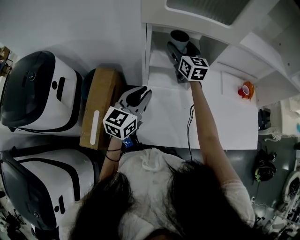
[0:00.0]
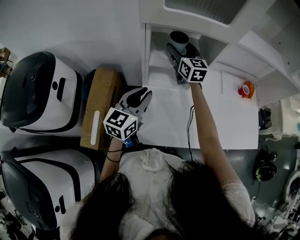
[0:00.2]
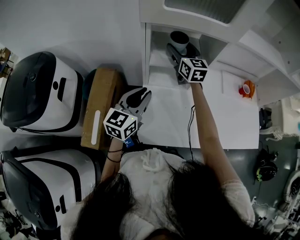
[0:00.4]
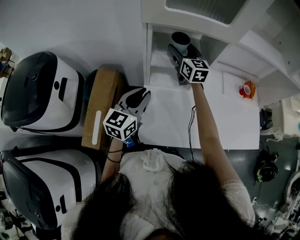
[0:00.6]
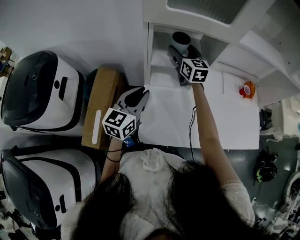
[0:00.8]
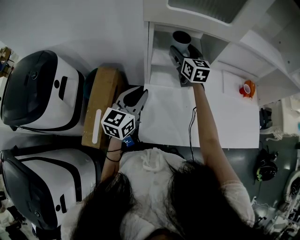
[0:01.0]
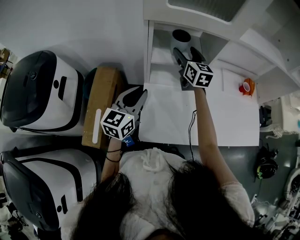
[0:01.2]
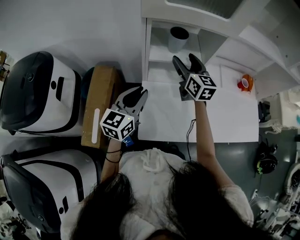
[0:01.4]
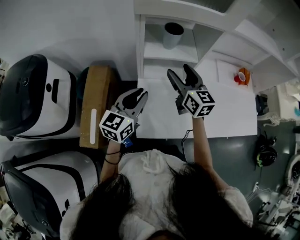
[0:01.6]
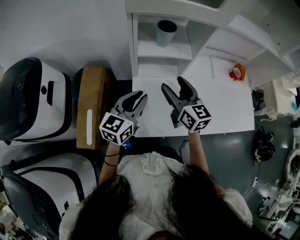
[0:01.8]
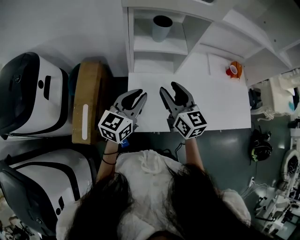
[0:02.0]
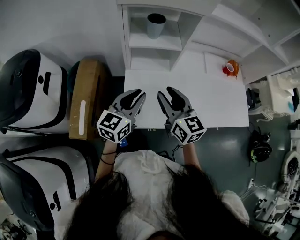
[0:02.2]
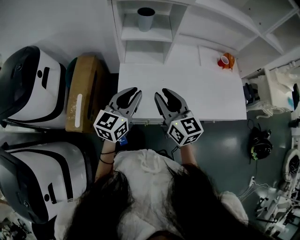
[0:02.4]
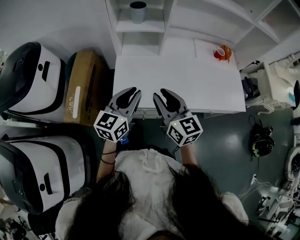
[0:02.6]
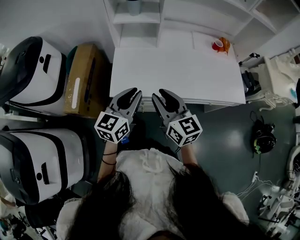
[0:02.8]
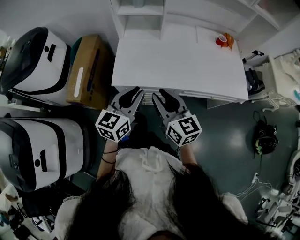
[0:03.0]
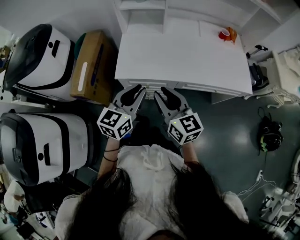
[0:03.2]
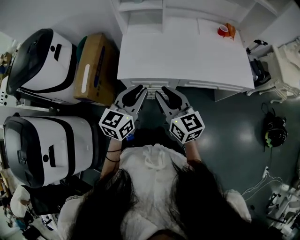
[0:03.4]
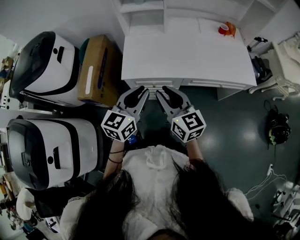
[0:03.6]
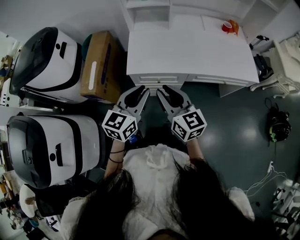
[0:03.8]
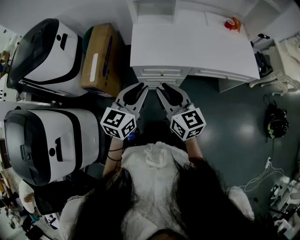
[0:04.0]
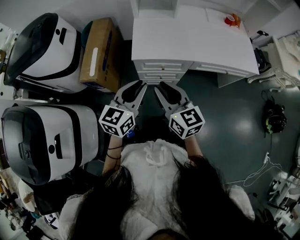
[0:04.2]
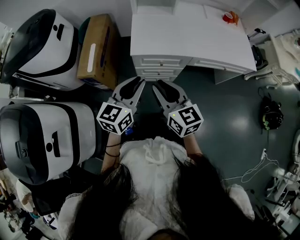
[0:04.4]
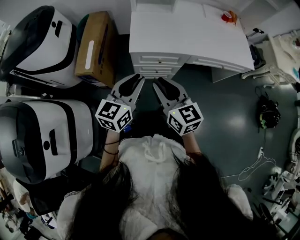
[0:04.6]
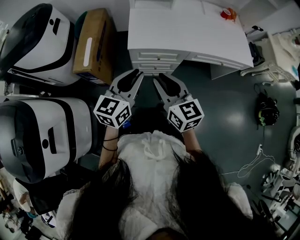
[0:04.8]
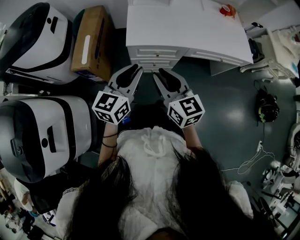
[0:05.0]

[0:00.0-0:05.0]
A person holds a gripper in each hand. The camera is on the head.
0.0 to 1.6 s: The right gripper shifts about 15 cm backward.
1.6 to 3.4 s: The left gripper moves backward and to the right, approximately 35 cm, while the right gripper is displaced backward by some 40 cm, and closes its fingers.
3.4 to 5.0 s: The grippers both shift to the left and backward by approximately 15 cm.

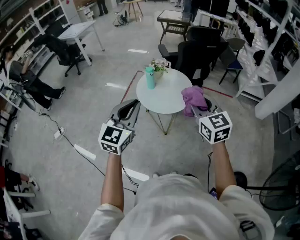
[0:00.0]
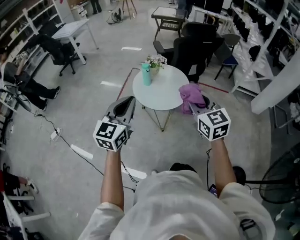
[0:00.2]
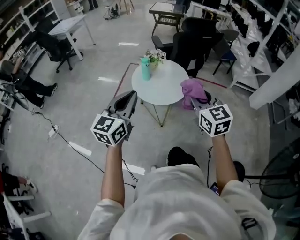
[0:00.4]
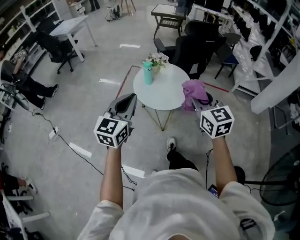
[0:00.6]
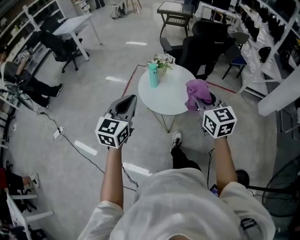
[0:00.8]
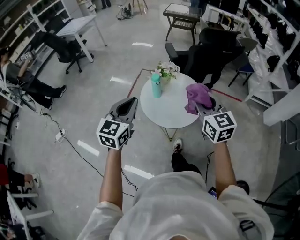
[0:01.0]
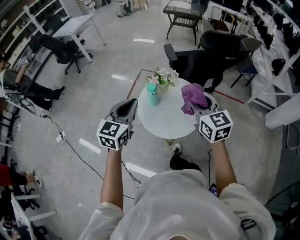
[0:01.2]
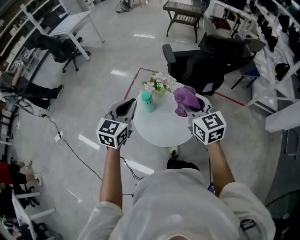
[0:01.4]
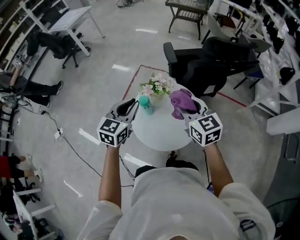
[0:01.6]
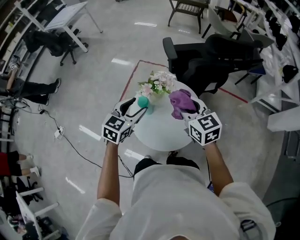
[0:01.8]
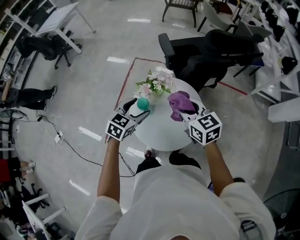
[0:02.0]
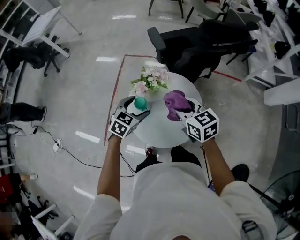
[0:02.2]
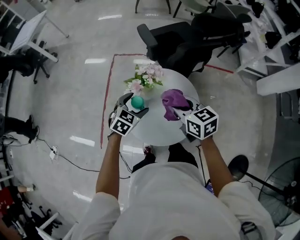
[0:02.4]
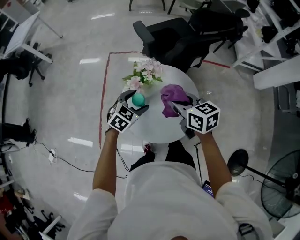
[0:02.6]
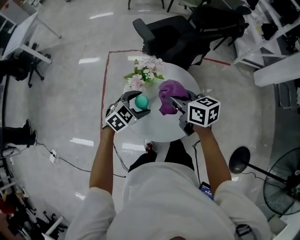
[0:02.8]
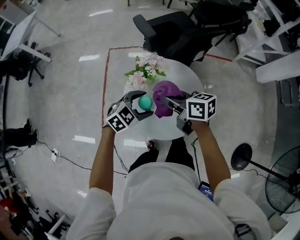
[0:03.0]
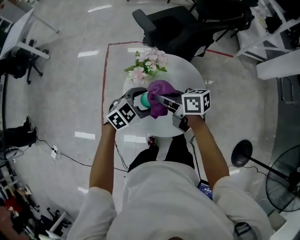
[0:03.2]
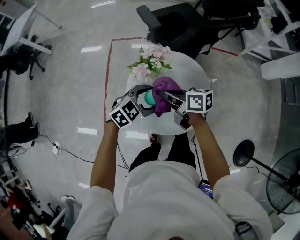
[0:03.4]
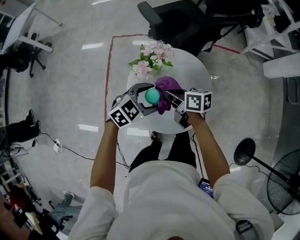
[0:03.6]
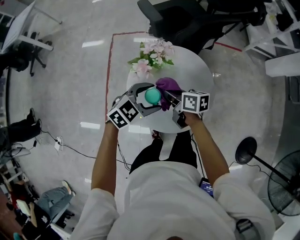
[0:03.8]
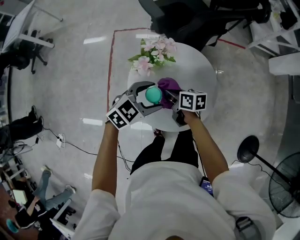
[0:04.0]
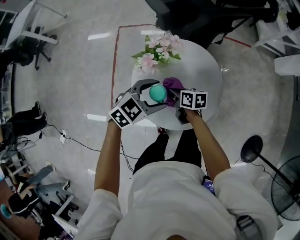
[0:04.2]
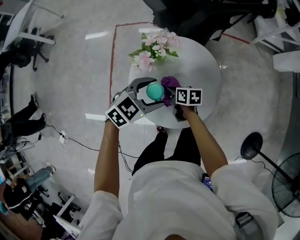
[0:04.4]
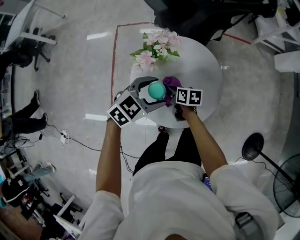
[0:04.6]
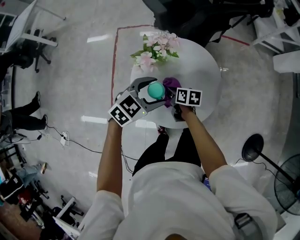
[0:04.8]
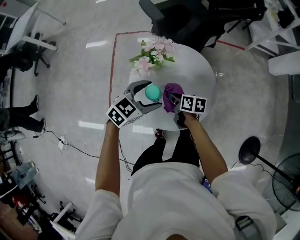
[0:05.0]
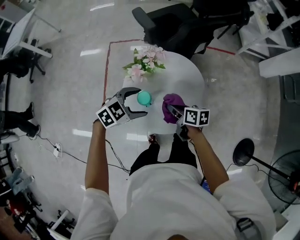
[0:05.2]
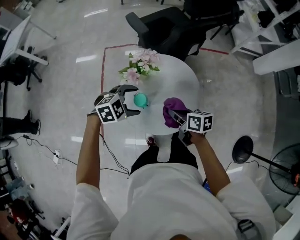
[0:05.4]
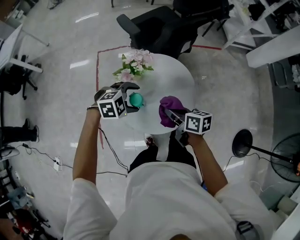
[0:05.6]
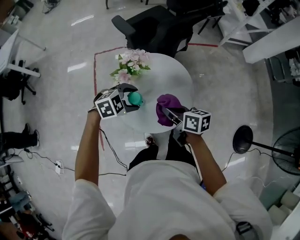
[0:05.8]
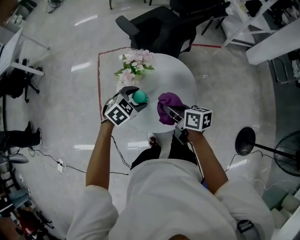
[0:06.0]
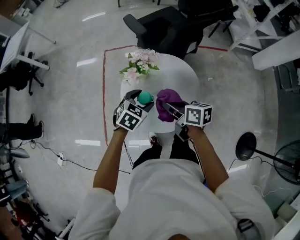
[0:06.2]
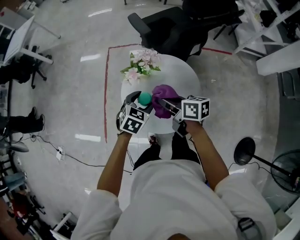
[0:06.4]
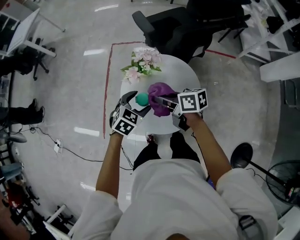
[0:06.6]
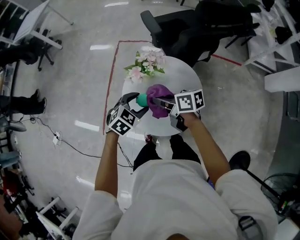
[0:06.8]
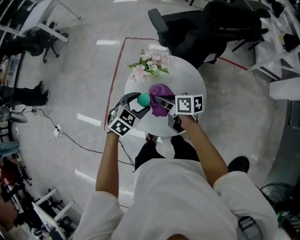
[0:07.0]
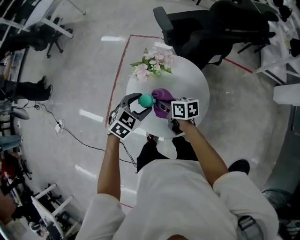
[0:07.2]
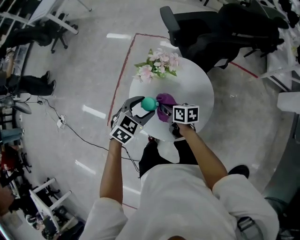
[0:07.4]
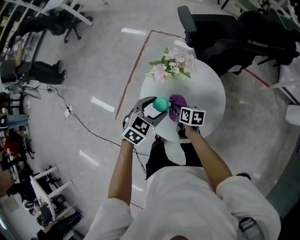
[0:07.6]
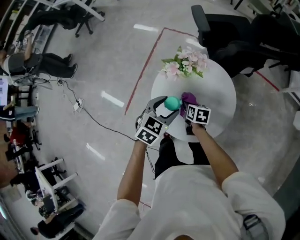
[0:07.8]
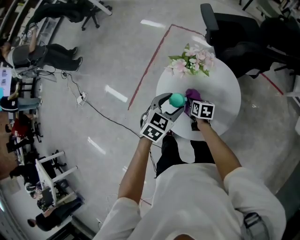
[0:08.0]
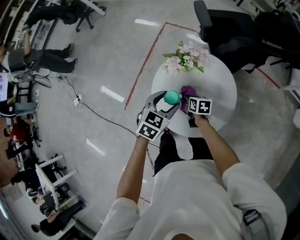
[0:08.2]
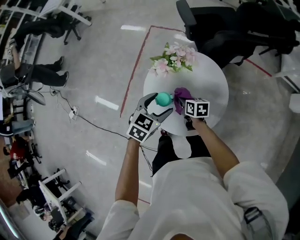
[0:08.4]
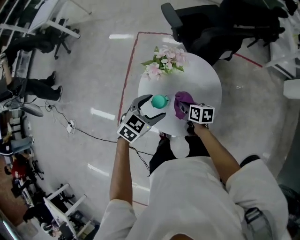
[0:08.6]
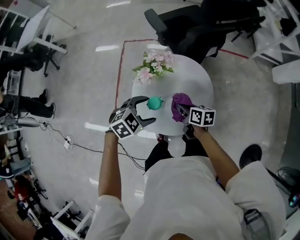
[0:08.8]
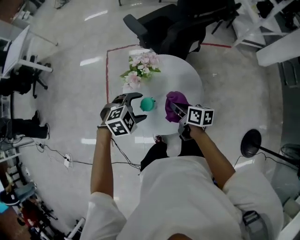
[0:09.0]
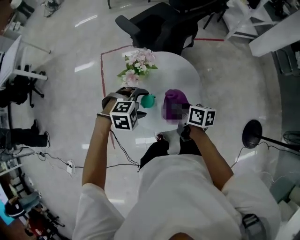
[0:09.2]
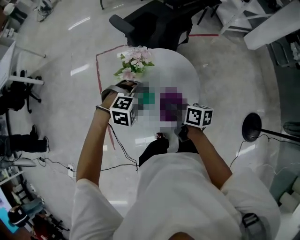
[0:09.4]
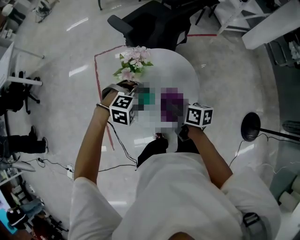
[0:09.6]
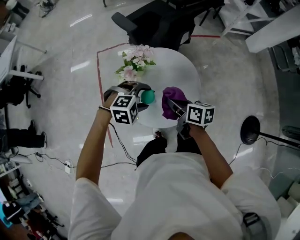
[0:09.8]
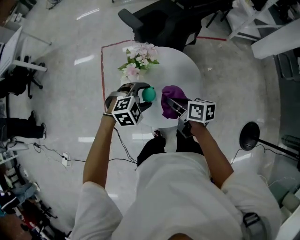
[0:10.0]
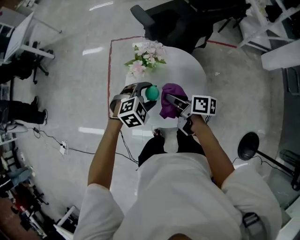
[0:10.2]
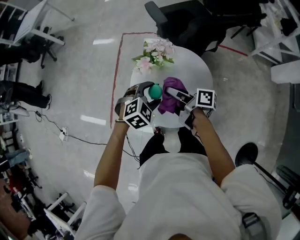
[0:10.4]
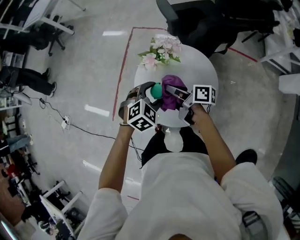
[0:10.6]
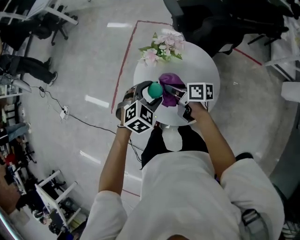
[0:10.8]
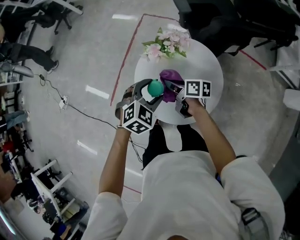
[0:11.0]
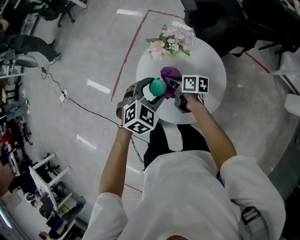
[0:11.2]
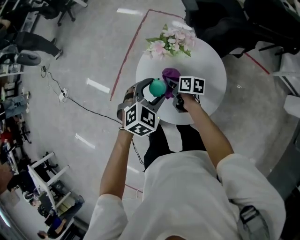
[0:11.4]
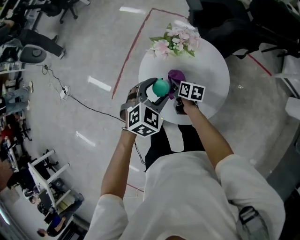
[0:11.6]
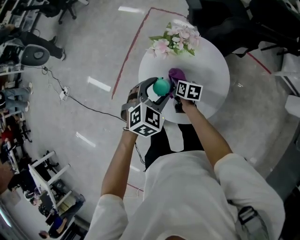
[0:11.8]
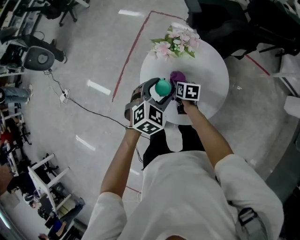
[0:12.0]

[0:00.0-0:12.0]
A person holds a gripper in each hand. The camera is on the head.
0.0 to 1.6 s: Both grippers move forward, roughly 40 cm.
1.6 to 3.0 s: Both grippers travel together downward, approximately 15 cm. The left gripper turns by some 60 degrees, and opens its fingers, while the right gripper twists about 40 degrees clockwise, seen from behind.
3.0 to 4.4 s: The right gripper is displaced downward by roughly 25 cm, and rotates some 30 degrees.
4.4 to 6.0 s: The right gripper is displaced upward by some 20 cm.
6.0 to 7.6 s: The right gripper heads downward, covering about 15 cm, and changes its angle by roughly 20 degrees. Meanwhile the left gripper changes its angle by about 40 degrees.
7.6 to 9.0 s: The right gripper travels upward by roughly 10 cm, and swivels approximately 30 degrees. Meanwhile the left gripper rotates around the line of its fingers by approximately 50 degrees, clockwise from behind.
9.0 to 10.4 s: The right gripper ends up about 5 cm from where it was, and rotates about 30 degrees, while the left gripper changes its angle by some 20 degrees.
10.4 to 12.0 s: The left gripper rotates approximately 30 degrees. Meanwhile the right gripper goes approximately 20 cm downward, and points its fingers about 40 degrees further downward.

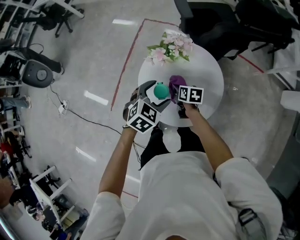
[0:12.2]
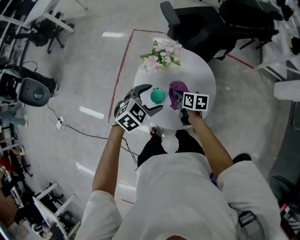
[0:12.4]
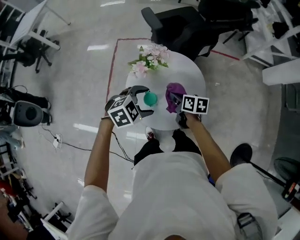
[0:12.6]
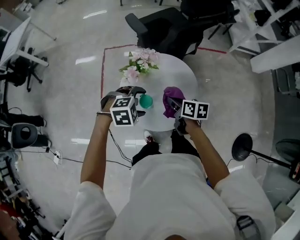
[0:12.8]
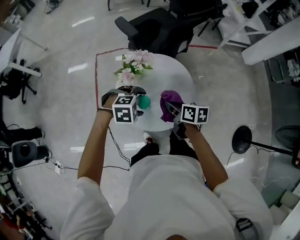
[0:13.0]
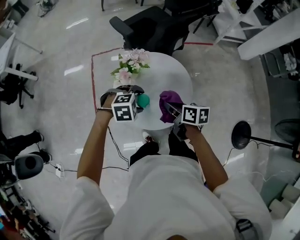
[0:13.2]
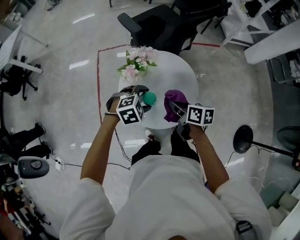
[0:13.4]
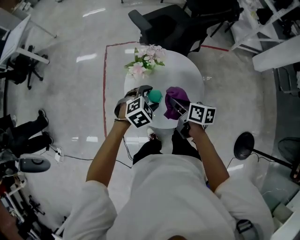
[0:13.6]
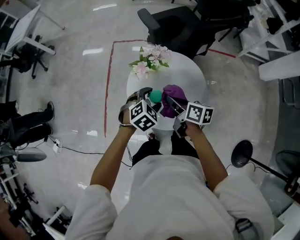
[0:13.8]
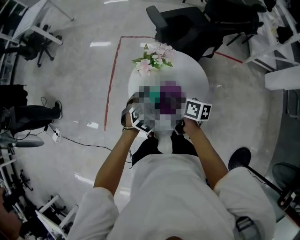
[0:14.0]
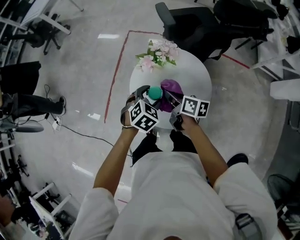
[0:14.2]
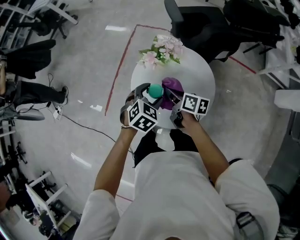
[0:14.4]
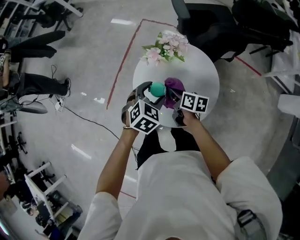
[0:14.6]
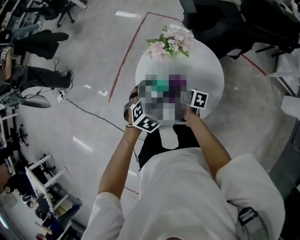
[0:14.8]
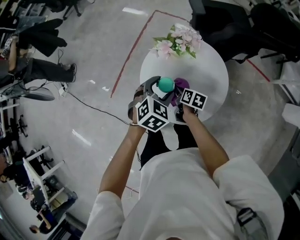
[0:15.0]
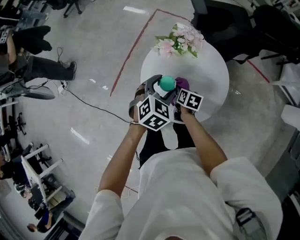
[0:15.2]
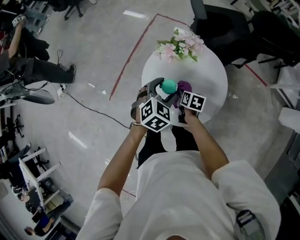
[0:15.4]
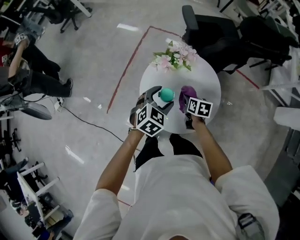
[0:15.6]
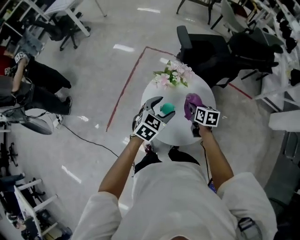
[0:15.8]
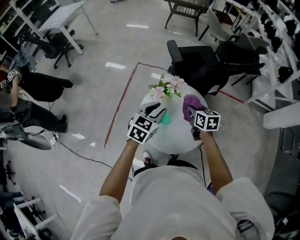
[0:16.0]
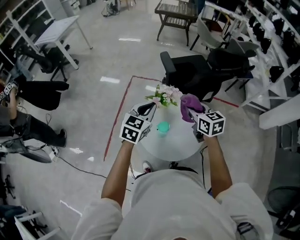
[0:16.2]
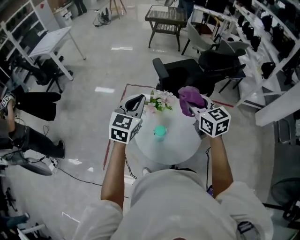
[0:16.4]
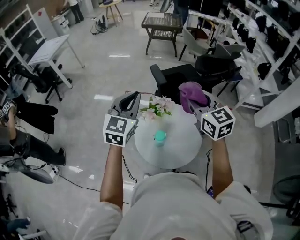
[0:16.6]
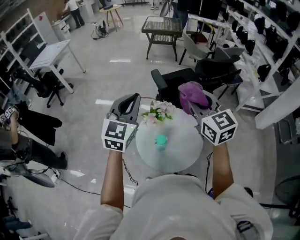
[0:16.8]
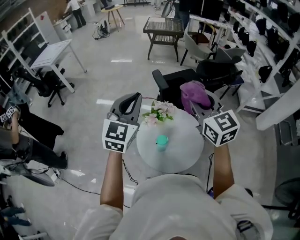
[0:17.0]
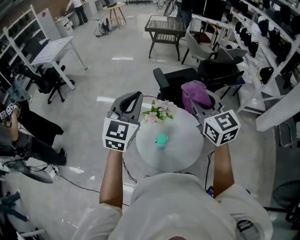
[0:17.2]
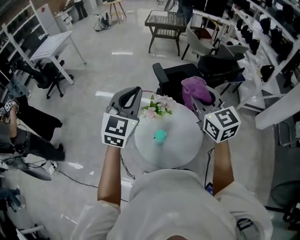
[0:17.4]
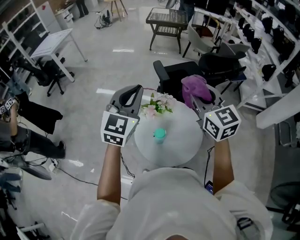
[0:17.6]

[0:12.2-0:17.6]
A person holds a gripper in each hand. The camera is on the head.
12.2 to 13.6 s: The left gripper swivels some 40 degrees, while the right gripper shifts about 15 cm upward, and changes its angle by approximately 30 degrees.
13.6 to 15.0 s: The left gripper swivels about 50 degrees. Meanwhile the right gripper shifts approximately 20 cm downward, and swivels some 20 degrees.
15.0 to 16.2 s: The left gripper moves upward and forward, some 20 cm, rotates some 30 degrees, and closes its fingers. Meanwhile the right gripper heads upward, covering some 30 cm, and changes its angle by approximately 50 degrees.
16.2 to 17.6 s: Both grippers travel together upward, roughly 20 cm. The right gripper rotates about 30 degrees; the left gripper rotates roughly 20 degrees.

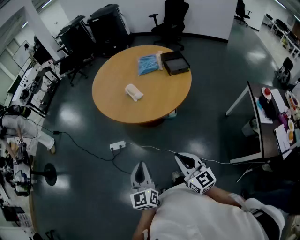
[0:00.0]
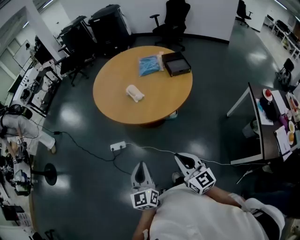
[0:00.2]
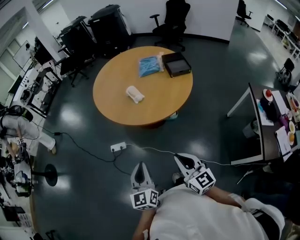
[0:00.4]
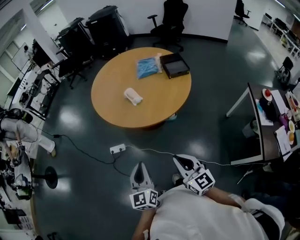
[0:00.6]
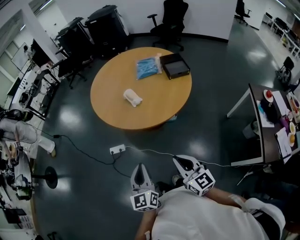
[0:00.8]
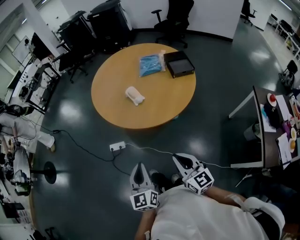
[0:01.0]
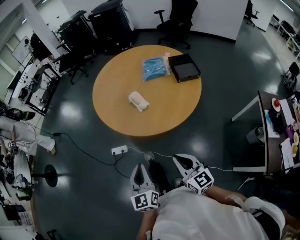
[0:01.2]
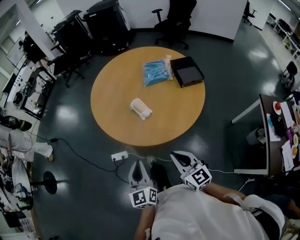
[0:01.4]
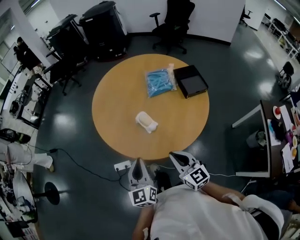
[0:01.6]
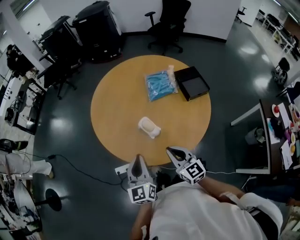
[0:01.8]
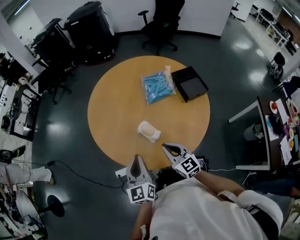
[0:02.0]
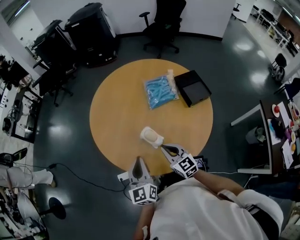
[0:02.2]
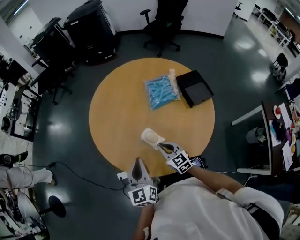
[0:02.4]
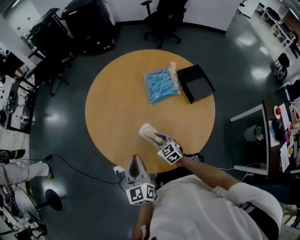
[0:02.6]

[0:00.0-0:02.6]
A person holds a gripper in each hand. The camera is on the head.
0.0 to 1.2 s: Both grippers move forward, about 15 cm.
1.2 to 2.6 s: The left gripper is displaced forward by roughly 40 cm; the right gripper heads forward and downward, covering about 50 cm, and changes its angle by about 30 degrees.
